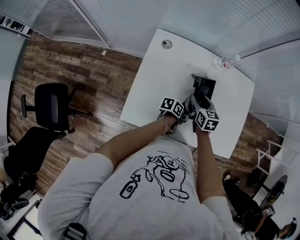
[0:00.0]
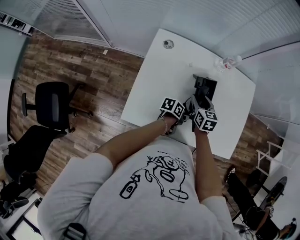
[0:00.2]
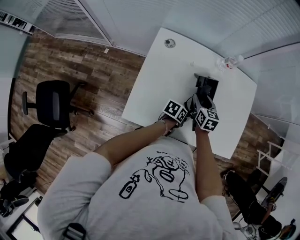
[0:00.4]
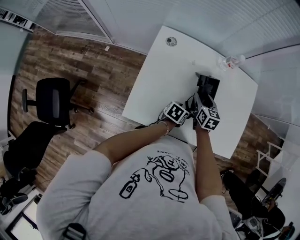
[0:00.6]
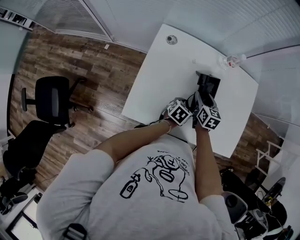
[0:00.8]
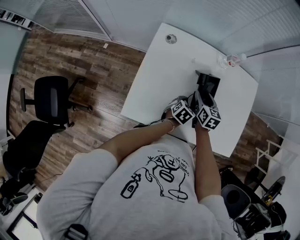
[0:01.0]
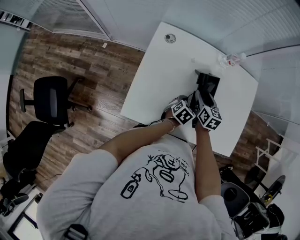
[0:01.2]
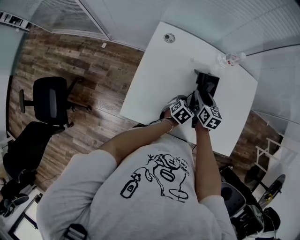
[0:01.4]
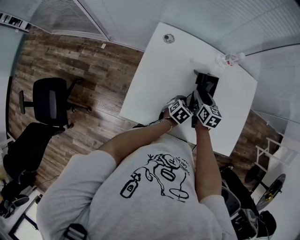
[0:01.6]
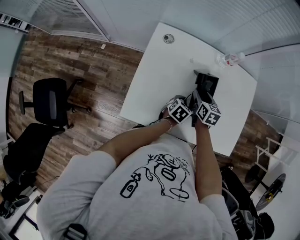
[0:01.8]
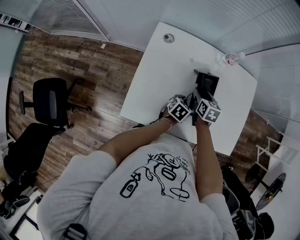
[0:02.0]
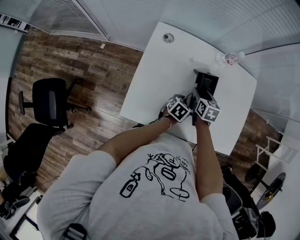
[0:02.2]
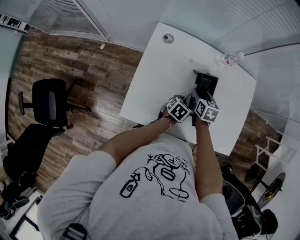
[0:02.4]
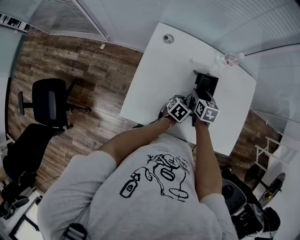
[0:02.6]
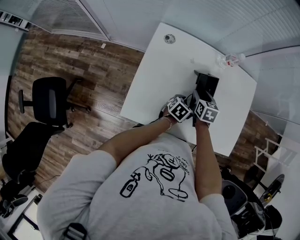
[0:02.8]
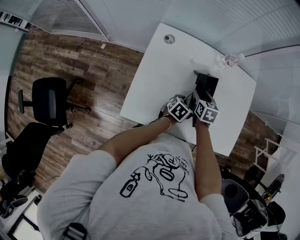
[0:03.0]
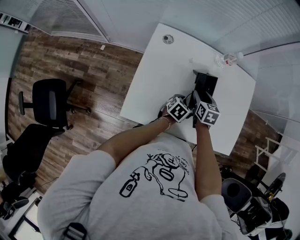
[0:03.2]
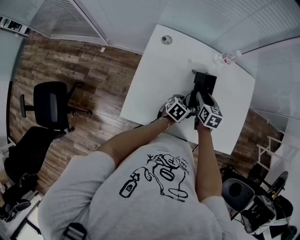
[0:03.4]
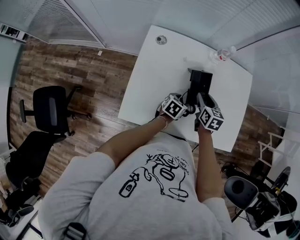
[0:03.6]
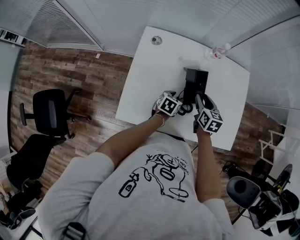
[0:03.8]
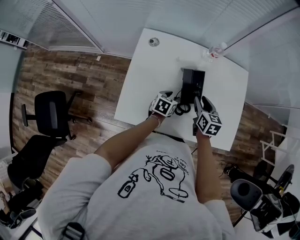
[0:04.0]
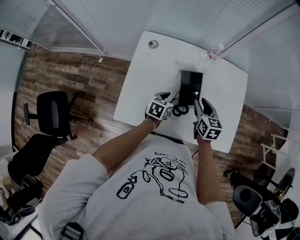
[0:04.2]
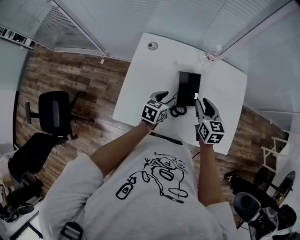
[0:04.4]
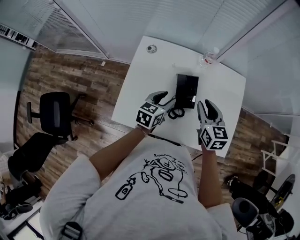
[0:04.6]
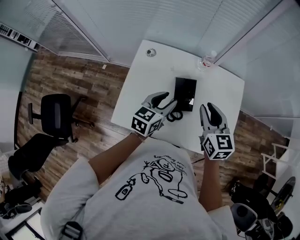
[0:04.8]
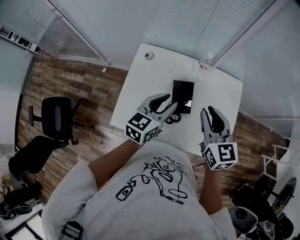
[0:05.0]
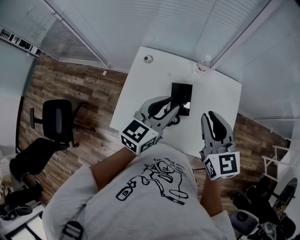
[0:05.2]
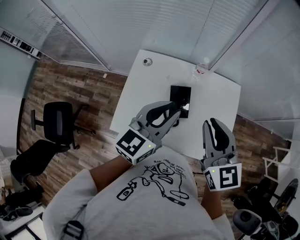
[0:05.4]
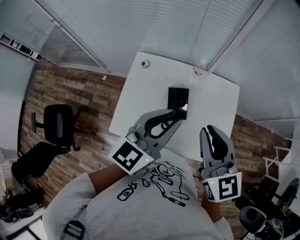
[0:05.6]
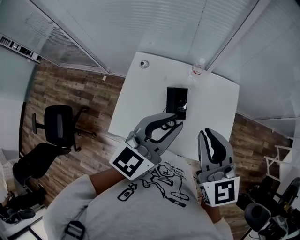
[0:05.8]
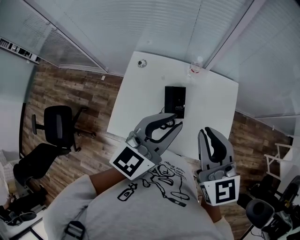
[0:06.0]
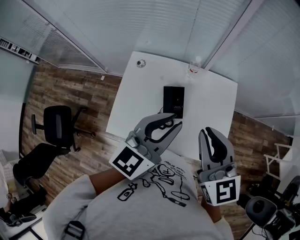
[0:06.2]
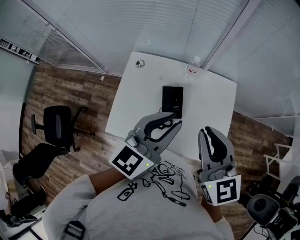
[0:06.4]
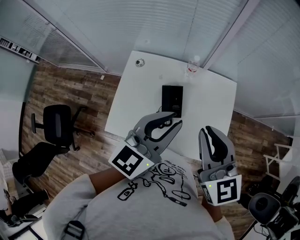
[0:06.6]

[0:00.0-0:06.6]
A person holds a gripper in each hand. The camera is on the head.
0:00.0 to 0:01.6: The left gripper shifts by roughly 5 cm, rotates around the line of its fingers by approximately 50 degrees, clockwise from behind, and opens.
0:01.6 to 0:03.2: The grippers make only small movements.
0:03.2 to 0:05.0: The two grippers go approximately 30 cm upward. The right gripper turns by roughly 30 degrees, and closes, while the left gripper turns by roughly 40 degrees, and closes up.
0:05.0 to 0:06.6: The left gripper is displaced upward and to the right by roughly 15 cm, while the right gripper goes roughly 10 cm upward.

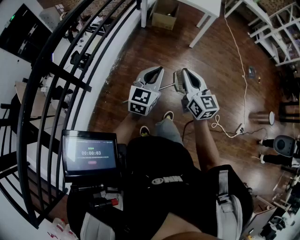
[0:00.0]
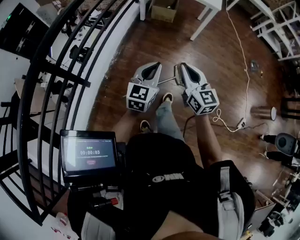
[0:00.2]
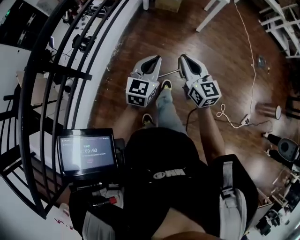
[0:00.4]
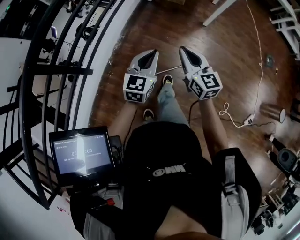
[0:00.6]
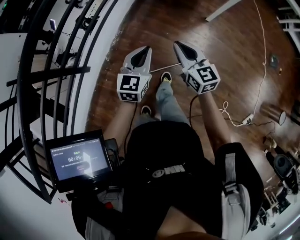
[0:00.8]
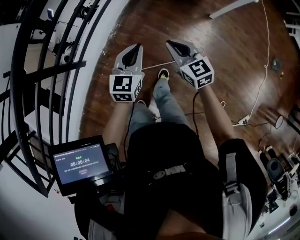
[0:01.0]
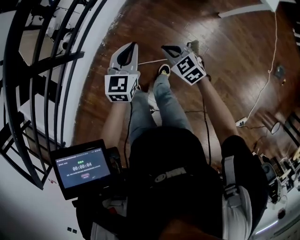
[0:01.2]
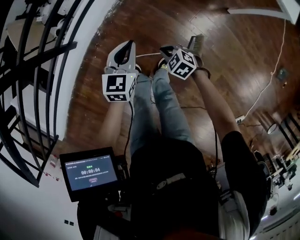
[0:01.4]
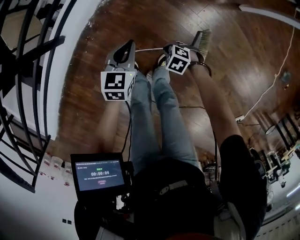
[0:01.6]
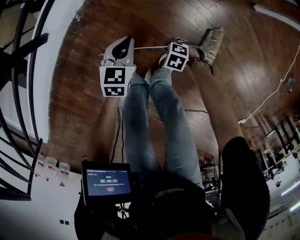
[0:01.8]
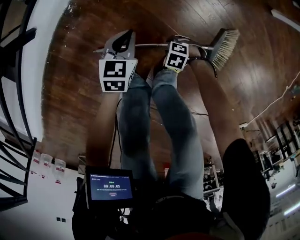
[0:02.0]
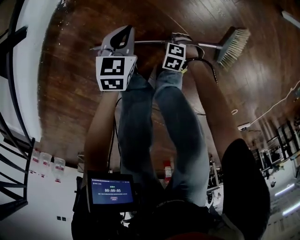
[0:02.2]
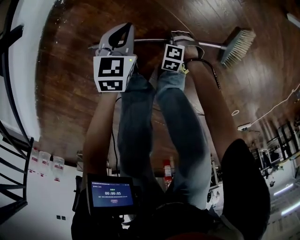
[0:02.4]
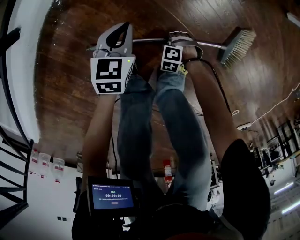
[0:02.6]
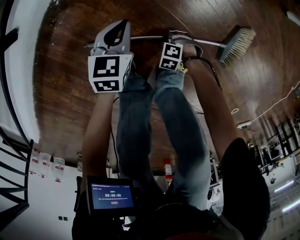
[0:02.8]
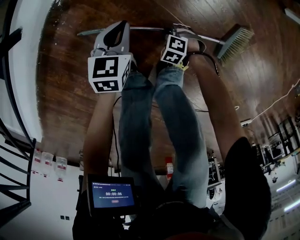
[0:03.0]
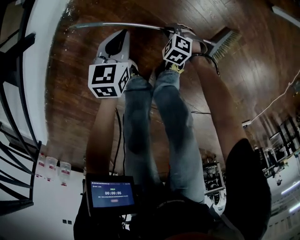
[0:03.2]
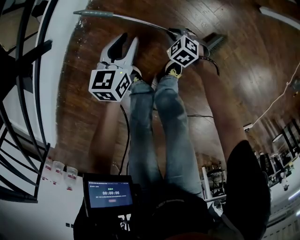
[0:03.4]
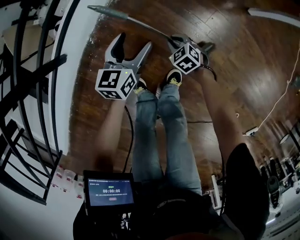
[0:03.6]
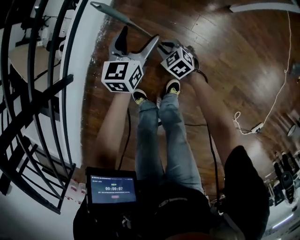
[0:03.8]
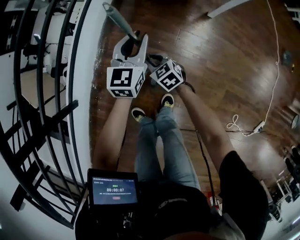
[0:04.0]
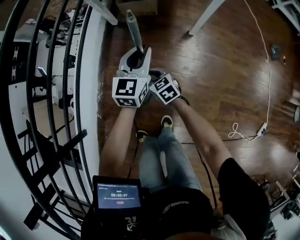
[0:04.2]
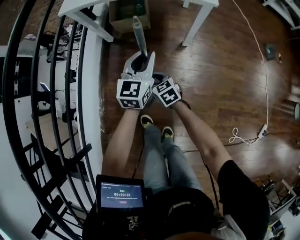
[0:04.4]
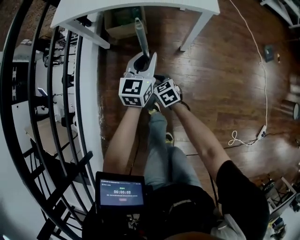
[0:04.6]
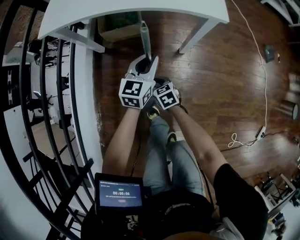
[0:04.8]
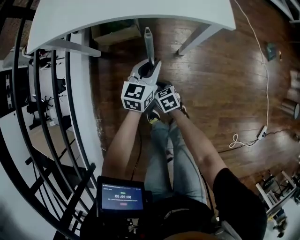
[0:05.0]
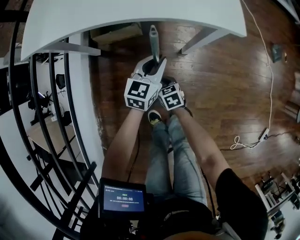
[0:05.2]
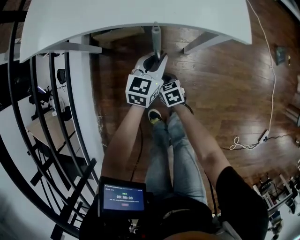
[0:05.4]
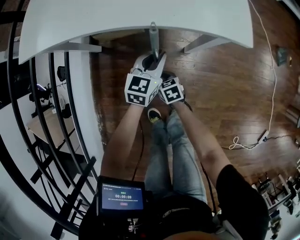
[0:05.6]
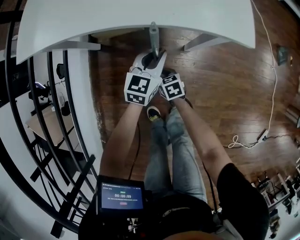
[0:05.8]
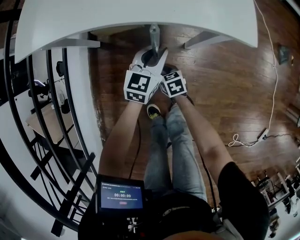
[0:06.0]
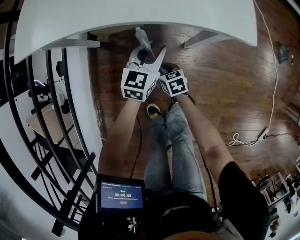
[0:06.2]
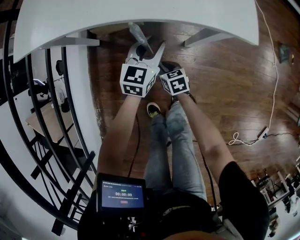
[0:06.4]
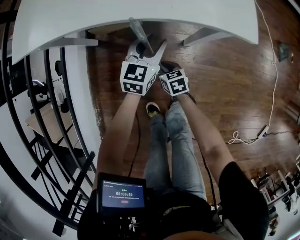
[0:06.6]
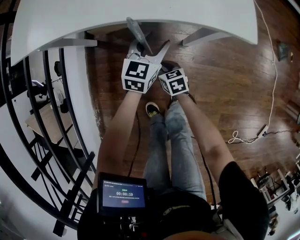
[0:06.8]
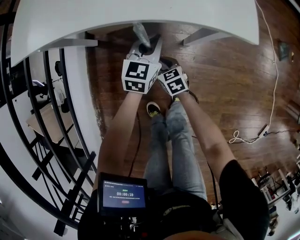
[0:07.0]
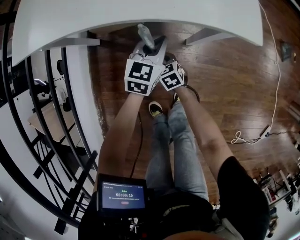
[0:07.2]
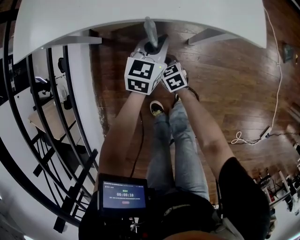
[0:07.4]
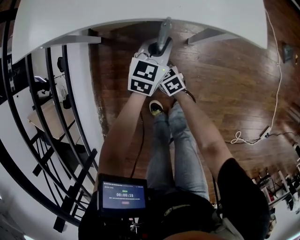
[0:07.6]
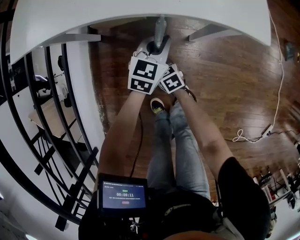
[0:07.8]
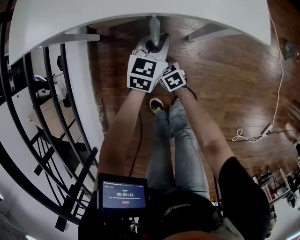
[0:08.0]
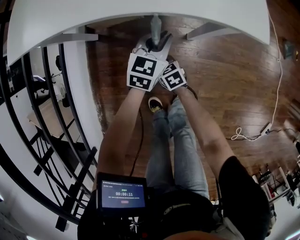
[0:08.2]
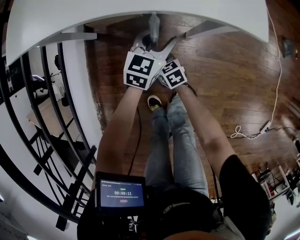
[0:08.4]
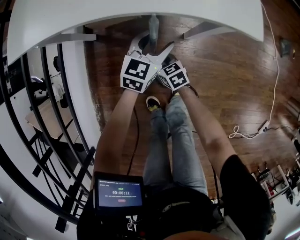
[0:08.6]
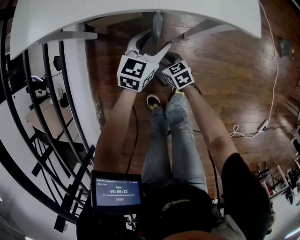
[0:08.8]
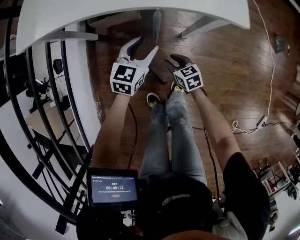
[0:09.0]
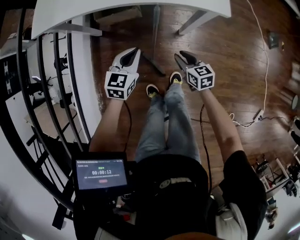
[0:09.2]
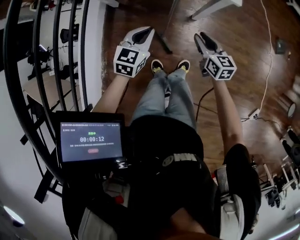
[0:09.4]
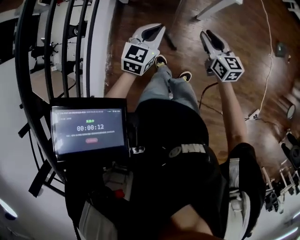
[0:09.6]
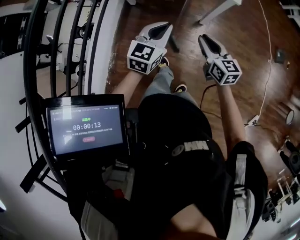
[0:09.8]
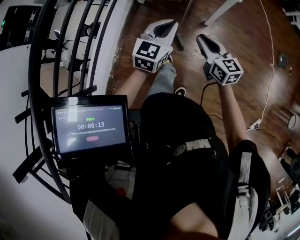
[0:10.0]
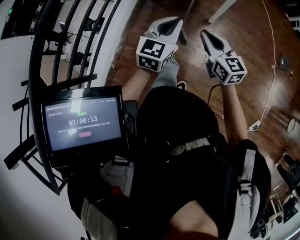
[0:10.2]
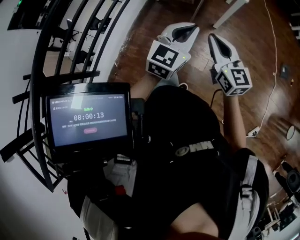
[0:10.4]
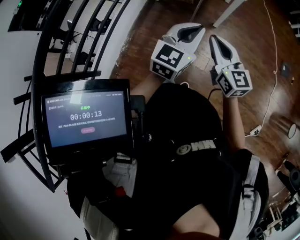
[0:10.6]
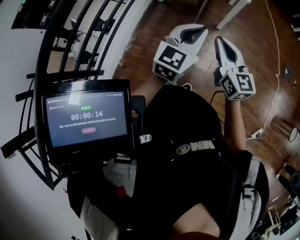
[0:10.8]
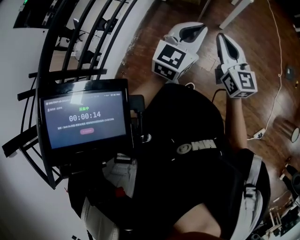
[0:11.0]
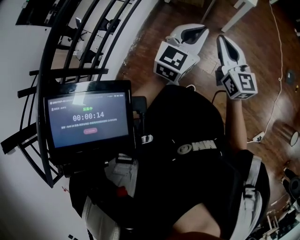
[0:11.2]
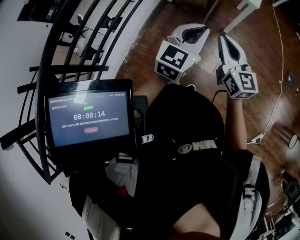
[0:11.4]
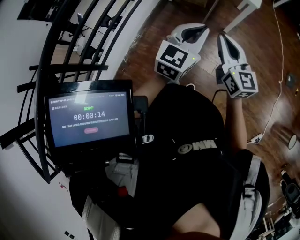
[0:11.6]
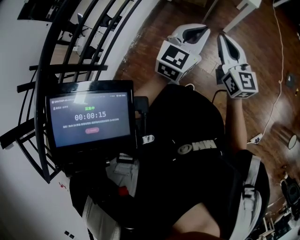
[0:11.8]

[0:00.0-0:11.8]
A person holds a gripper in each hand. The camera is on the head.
0:00.0 to 0:01.4: The right gripper goes roughly 50 cm downward, and tilts its fingers approximately 50 degrees downward. Meanwhile the left gripper goes roughly 30 cm downward, and changes its angle by about 40 degrees.
0:01.4 to 0:03.0: Both grippers travel together downward, approximately 50 cm. The right gripper changes its angle by roughly 30 degrees, and opens, then closes again.
0:03.0 to 0:04.4: The two grippers travel together, roughly 50 cm. The grippers both shift upward by approximately 60 cm. The left gripper angles its fingers upward, by roughly 30 degrees, and opens, then closes once more. Meanwhile the right gripper points its fingers roughly 40 degrees further upward.
0:04.4 to 0:06.0: The two grippers go approximately 30 cm forward, downward and to the right.
0:06.0 to 0:07.4: The left gripper opens, then closes again.
0:07.4 to 0:08.8: The left gripper opens.
0:08.8 to 0:10.4: The two grippers go some 60 cm upward and backward. The right gripper tips its fingers upward by some 30 degrees, and closes its fingers. The left gripper swivels approximately 20 degrees, and closes up.
0:10.4 to 0:11.8: The right gripper shifts by some 5 cm.

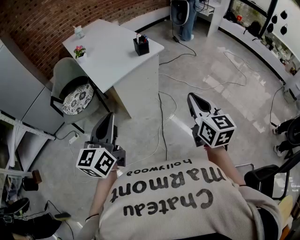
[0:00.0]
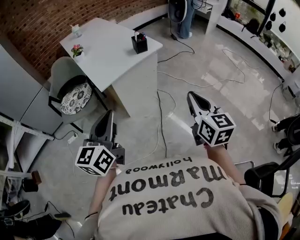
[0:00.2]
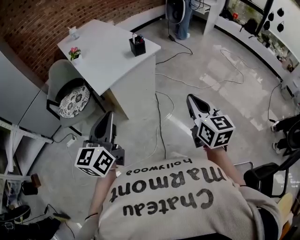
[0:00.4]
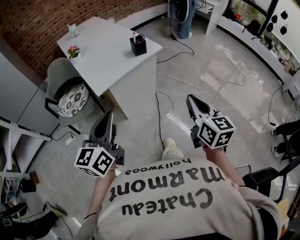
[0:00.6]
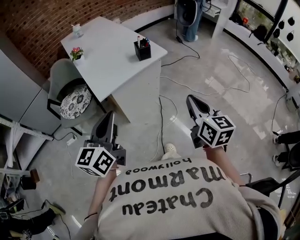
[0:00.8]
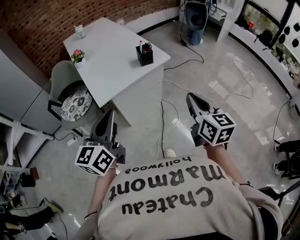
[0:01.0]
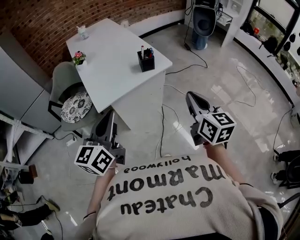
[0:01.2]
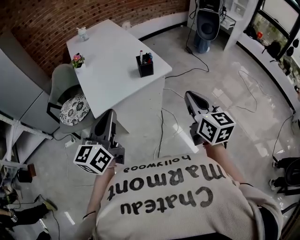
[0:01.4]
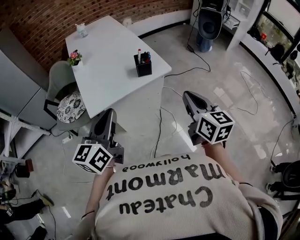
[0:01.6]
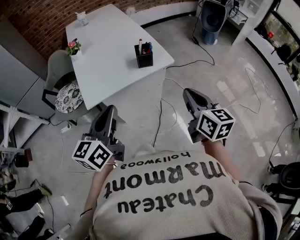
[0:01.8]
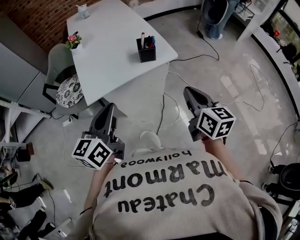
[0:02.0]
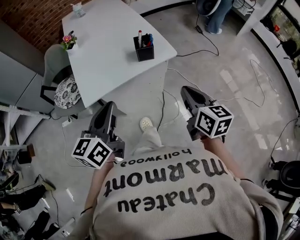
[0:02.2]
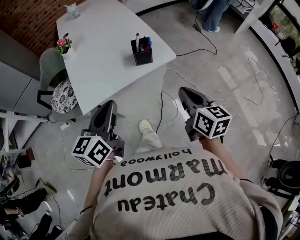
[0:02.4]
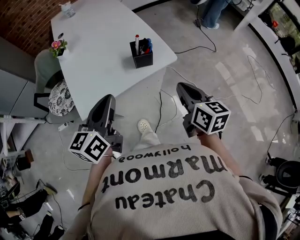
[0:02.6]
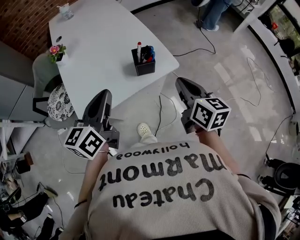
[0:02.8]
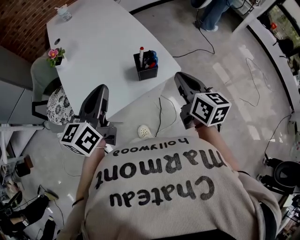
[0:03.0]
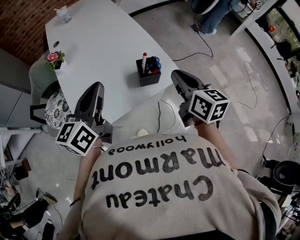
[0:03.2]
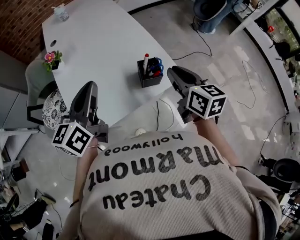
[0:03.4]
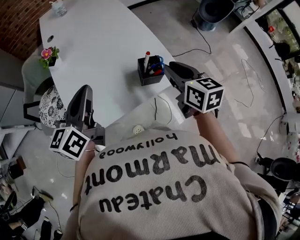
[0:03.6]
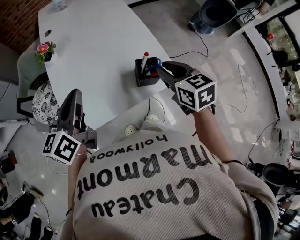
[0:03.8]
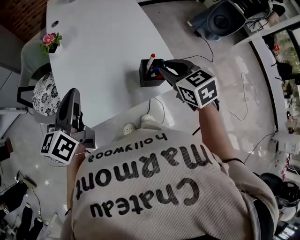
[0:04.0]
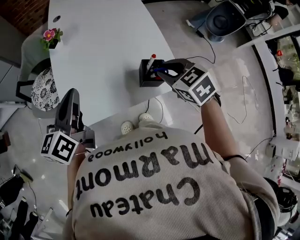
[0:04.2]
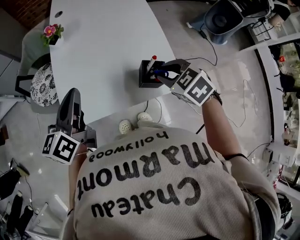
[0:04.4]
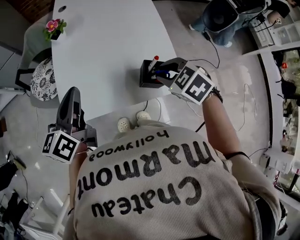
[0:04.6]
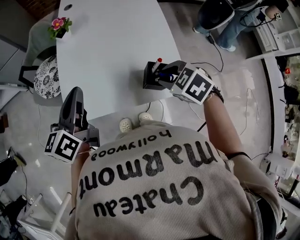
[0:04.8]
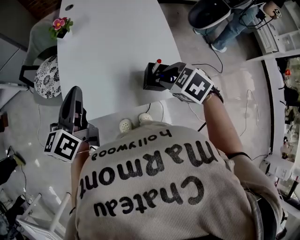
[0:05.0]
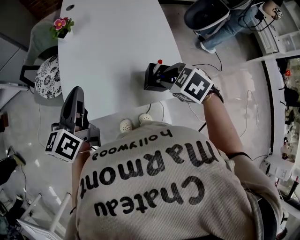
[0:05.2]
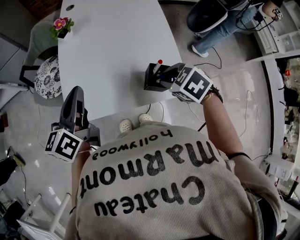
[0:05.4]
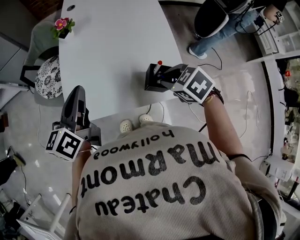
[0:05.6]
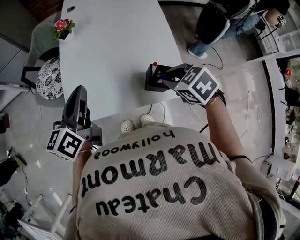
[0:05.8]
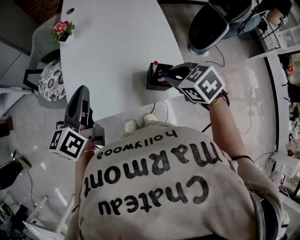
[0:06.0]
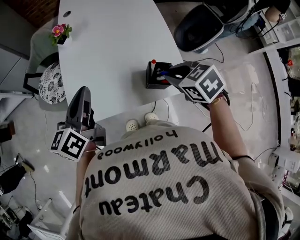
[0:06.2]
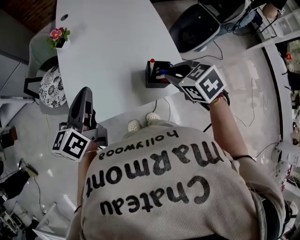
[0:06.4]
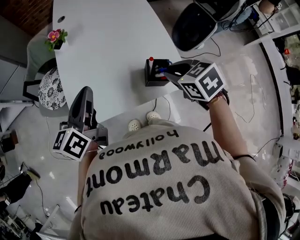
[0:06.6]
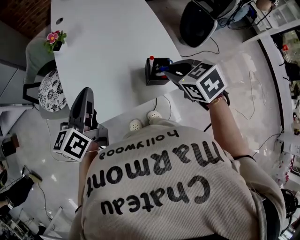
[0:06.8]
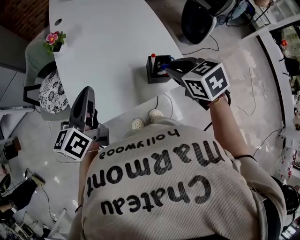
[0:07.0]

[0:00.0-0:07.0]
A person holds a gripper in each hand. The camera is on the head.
0:00.0 to 0:01.4: Both grippers move forward, about 25 cm.
0:01.4 to 0:02.8: The left gripper goes roughly 25 cm forward. Meanwhile the right gripper goes about 25 cm forward and downward.
0:02.8 to 0:04.2: The right gripper is displaced forward and to the left by about 20 cm, swivels about 60 degrees, and opens up; the left gripper shifts some 15 cm to the left and forward.
0:04.2 to 0:05.6: The right gripper swivels approximately 20 degrees.
0:05.6 to 0:07.0: The right gripper changes its angle by about 30 degrees.
